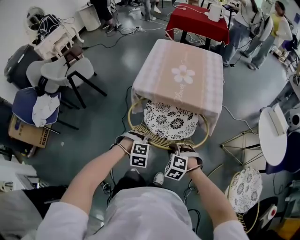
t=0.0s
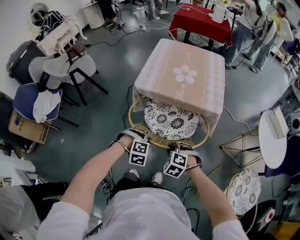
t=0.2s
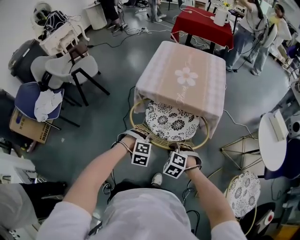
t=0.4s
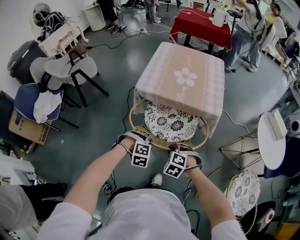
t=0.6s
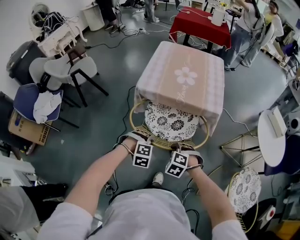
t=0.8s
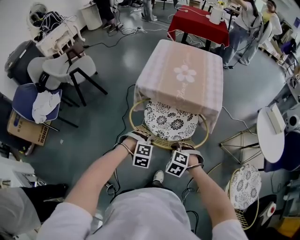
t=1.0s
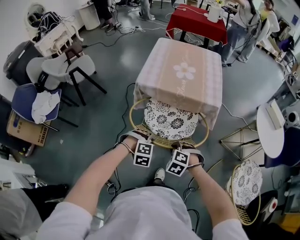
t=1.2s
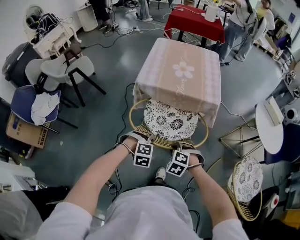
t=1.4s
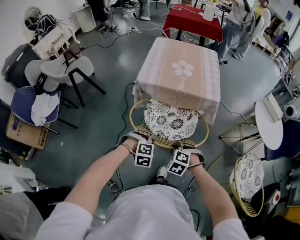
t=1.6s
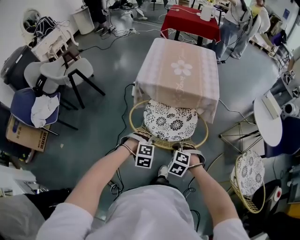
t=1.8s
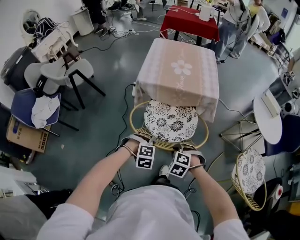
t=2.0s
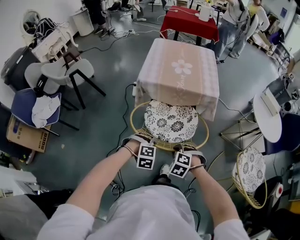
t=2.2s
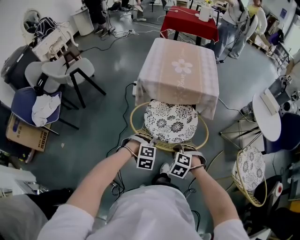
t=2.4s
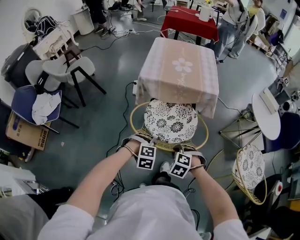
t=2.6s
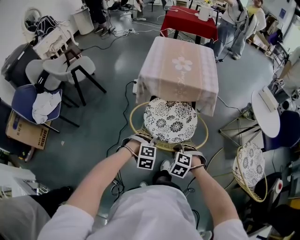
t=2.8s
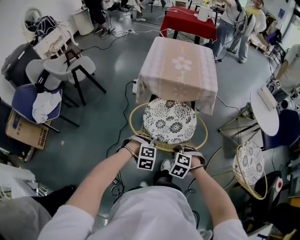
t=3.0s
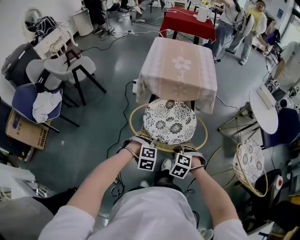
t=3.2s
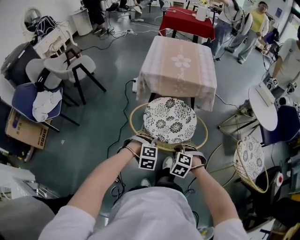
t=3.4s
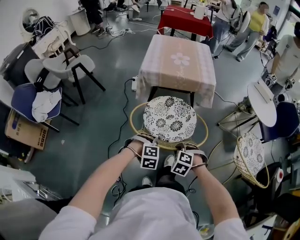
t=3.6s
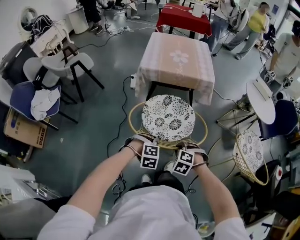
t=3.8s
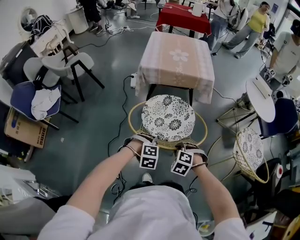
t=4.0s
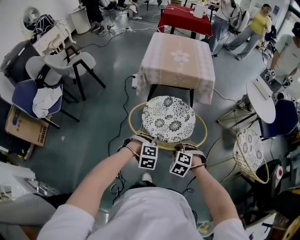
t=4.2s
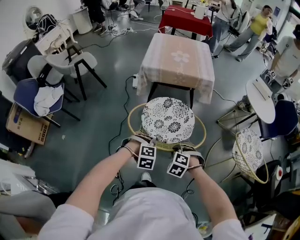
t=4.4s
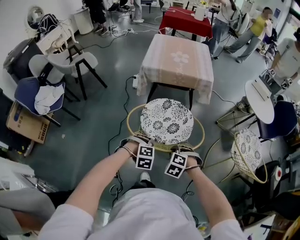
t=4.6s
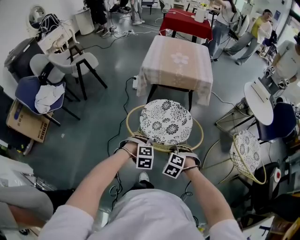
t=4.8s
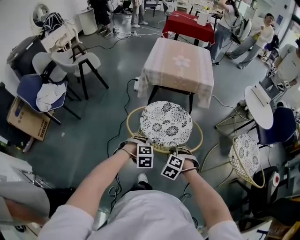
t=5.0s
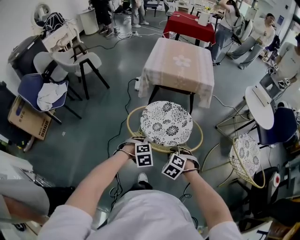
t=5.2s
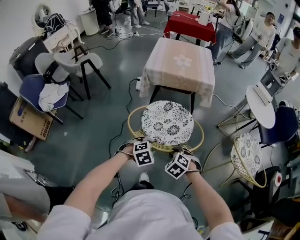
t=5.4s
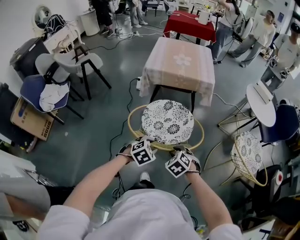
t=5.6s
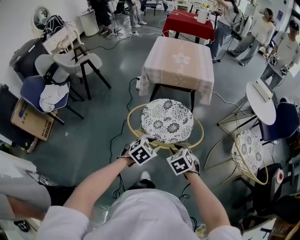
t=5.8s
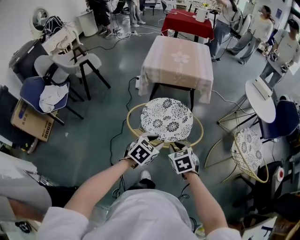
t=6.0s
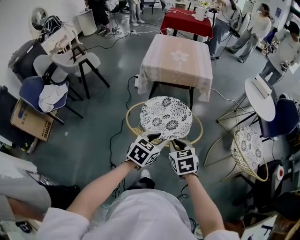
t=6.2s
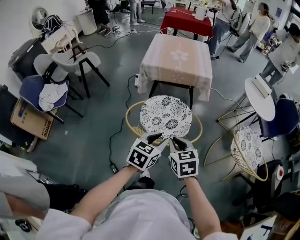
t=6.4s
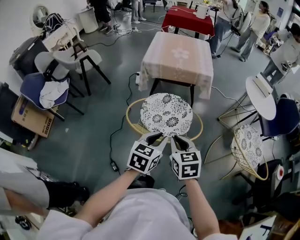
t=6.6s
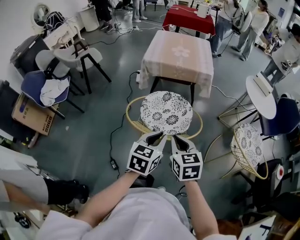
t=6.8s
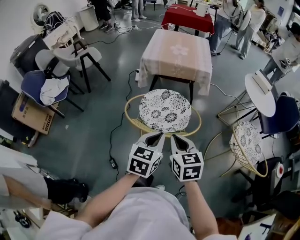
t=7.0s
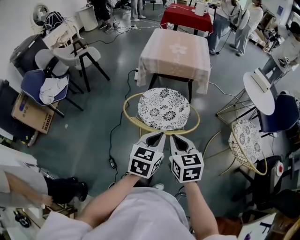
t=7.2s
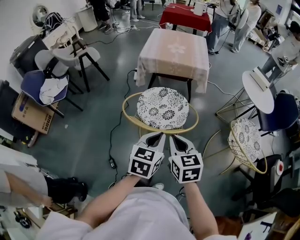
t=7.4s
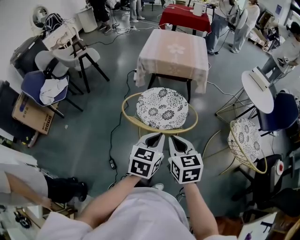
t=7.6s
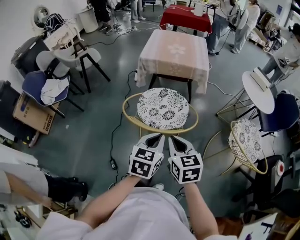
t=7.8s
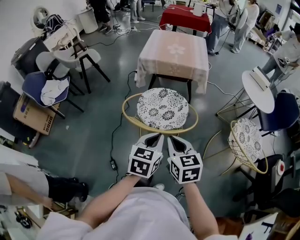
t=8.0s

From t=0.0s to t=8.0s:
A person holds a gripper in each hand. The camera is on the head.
From t=0.0s to t=1.6s: The two grippers go about 10 cm backward.
From t=1.6s to t=3.2s: The grippers both shift backward by approximately 15 cm.
From t=3.2s to t=4.8s: The grippers both shift backward by about 10 cm.
From t=4.8s to t=6.4s: The grippers both shift upward by some 15 cm. The right gripper rotates around the line of its fingers by some 60 degrees, clockwise from behind; the left gripper rotates around the line of its fingers by roughly 60 degrees, counterclockwise from behind.
From t=6.4s to t=8.0s: Both grippers travel together backward, roughly 5 cm. The left gripper closes.

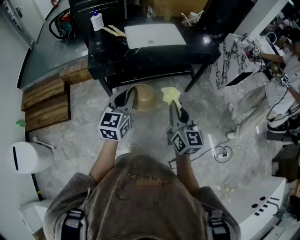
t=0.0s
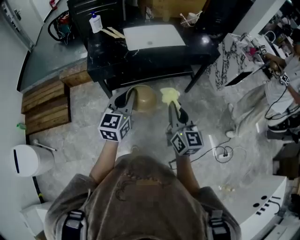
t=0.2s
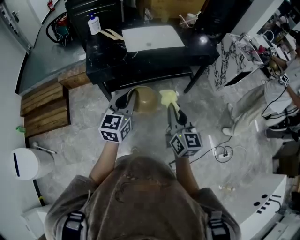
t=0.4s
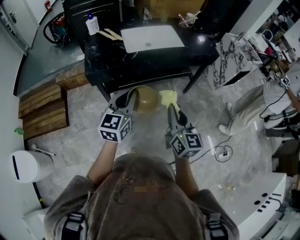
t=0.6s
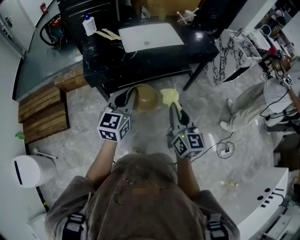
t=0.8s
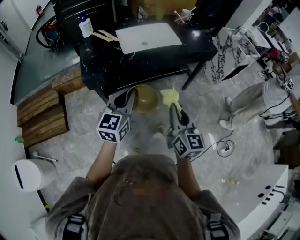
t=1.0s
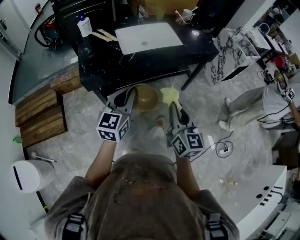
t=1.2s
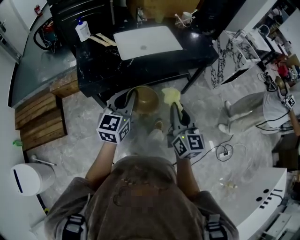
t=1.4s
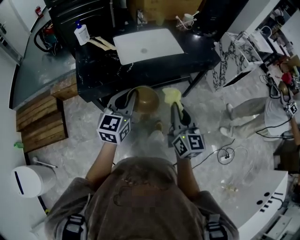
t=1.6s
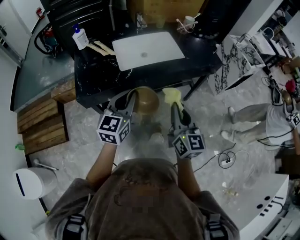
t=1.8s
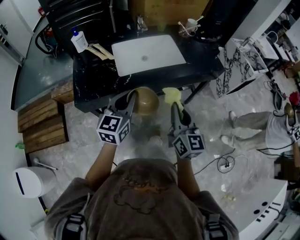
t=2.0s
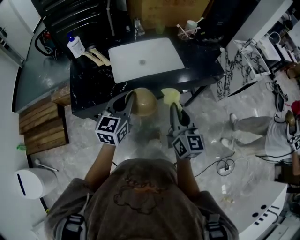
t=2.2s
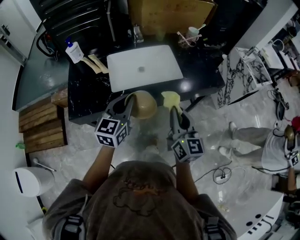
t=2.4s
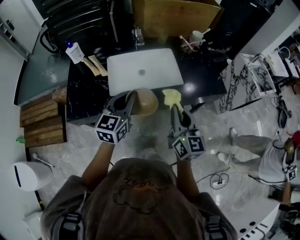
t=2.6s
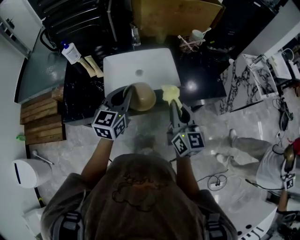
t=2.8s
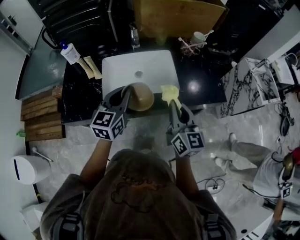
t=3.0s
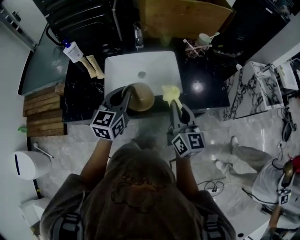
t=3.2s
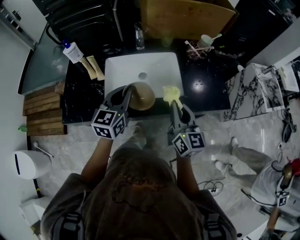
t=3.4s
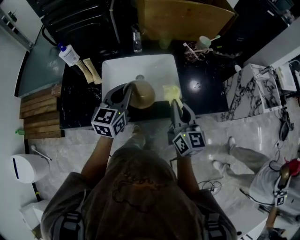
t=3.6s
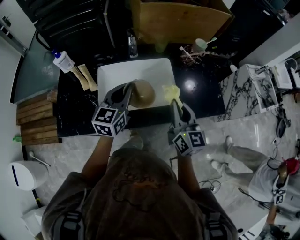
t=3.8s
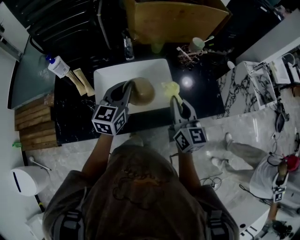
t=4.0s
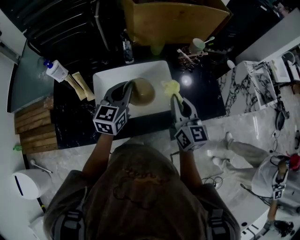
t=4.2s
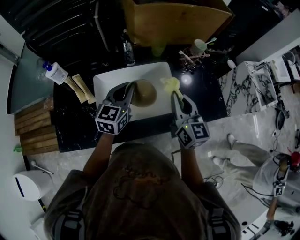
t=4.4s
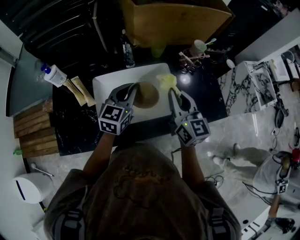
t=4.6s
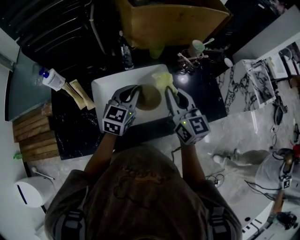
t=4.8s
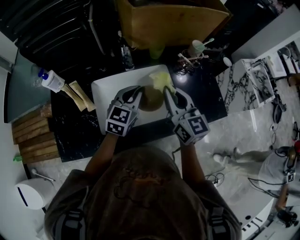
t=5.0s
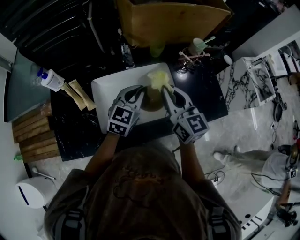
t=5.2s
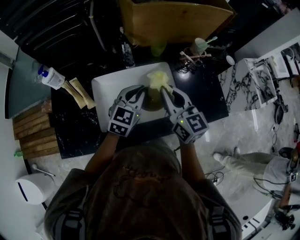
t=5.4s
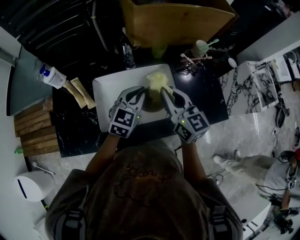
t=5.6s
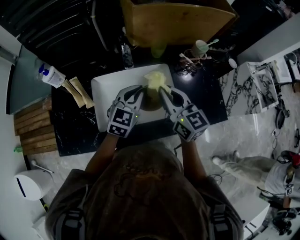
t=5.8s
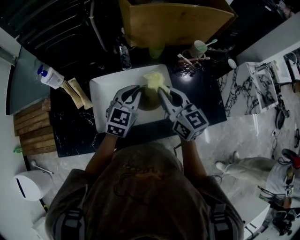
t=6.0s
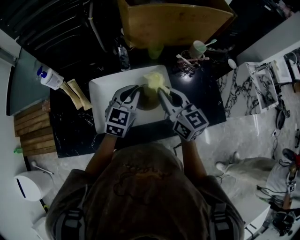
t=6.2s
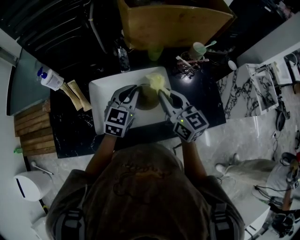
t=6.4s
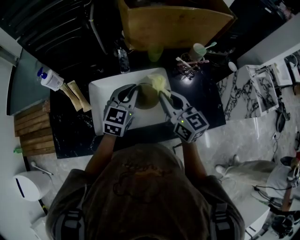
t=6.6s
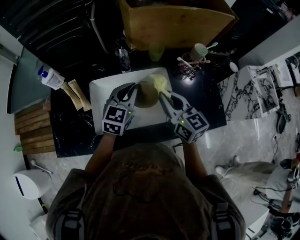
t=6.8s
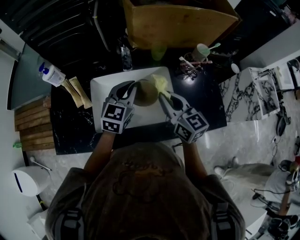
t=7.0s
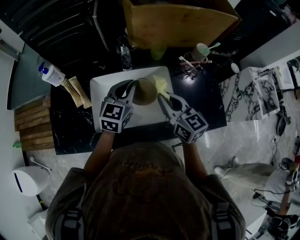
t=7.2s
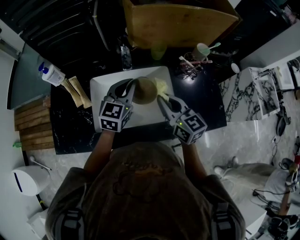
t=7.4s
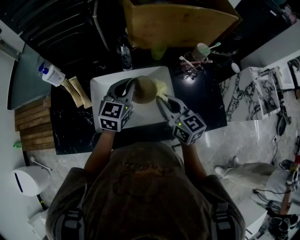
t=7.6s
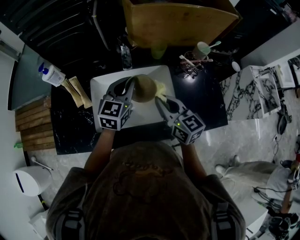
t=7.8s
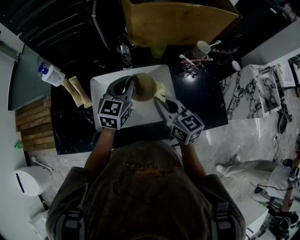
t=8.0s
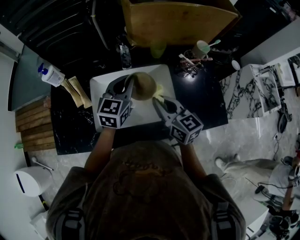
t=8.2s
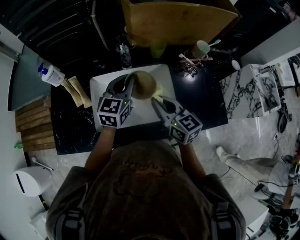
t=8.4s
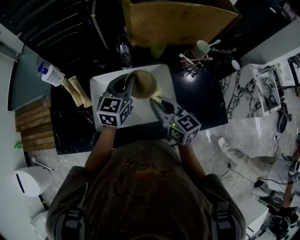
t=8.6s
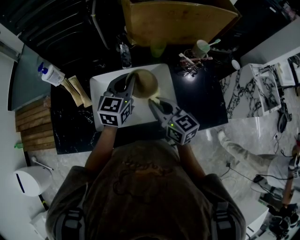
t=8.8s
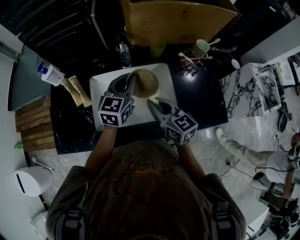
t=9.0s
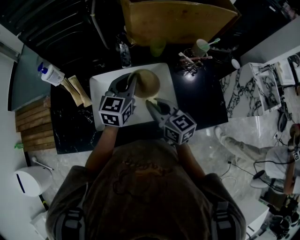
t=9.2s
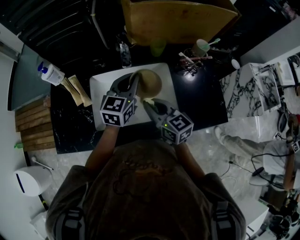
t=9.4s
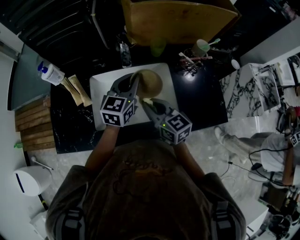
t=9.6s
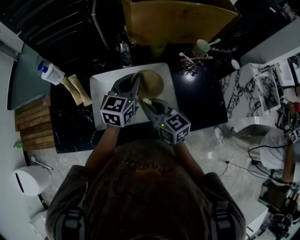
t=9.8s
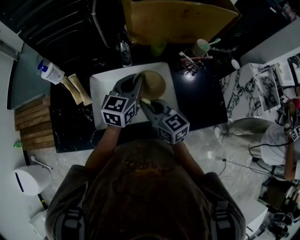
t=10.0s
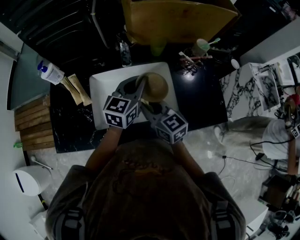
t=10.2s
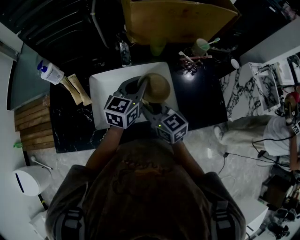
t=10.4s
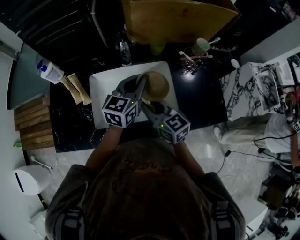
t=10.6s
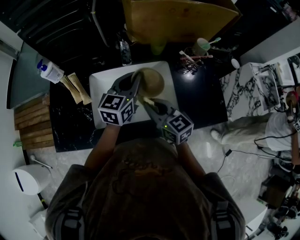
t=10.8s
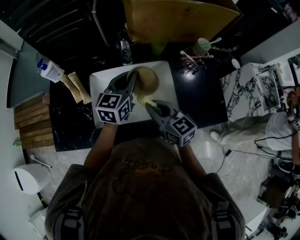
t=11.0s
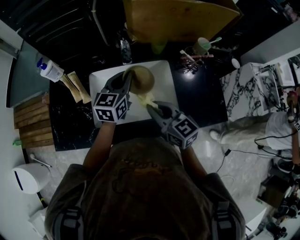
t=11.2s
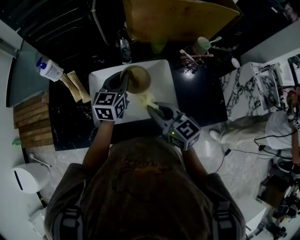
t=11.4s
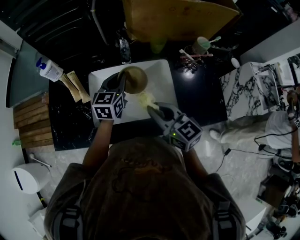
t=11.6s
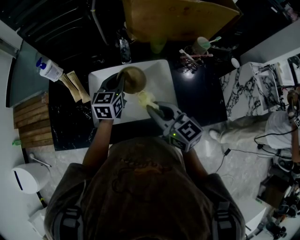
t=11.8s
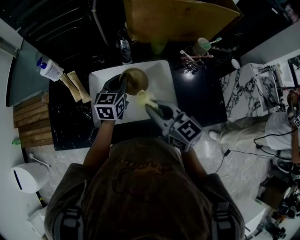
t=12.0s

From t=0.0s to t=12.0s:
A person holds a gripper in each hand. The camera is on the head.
From t=0.0s to t=1.6s: Both grippers travel together forward, roughly 15 cm.
From t=1.6s to t=3.0s: Both grippers travel together forward, approximately 30 cm.
From t=3.0s to t=4.4s: The grippers both shift forward by some 15 cm.
From t=4.4s to t=6.0s: The left gripper ends up roughly 5 cm from where it was. The right gripper ends up approximately 5 cm from where it was.
From t=6.0s to t=7.6s: The grippers move only a little.
From t=7.6s to t=9.0s: The grippers stay close to where they were, moving slightly.
From t=9.0s to t=10.4s: The grippers move only a little.
From t=10.4s to t=12.0s: The left gripper heads to the left and downward, covering roughly 10 cm; the right gripper travels upward by about 5 cm.

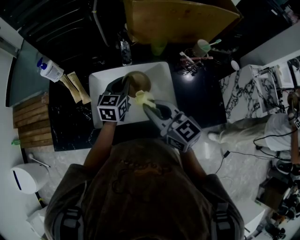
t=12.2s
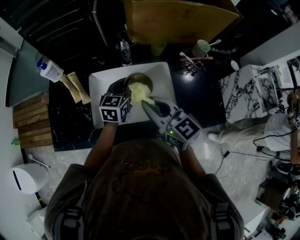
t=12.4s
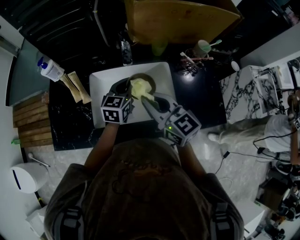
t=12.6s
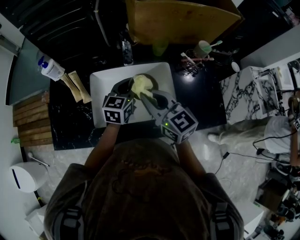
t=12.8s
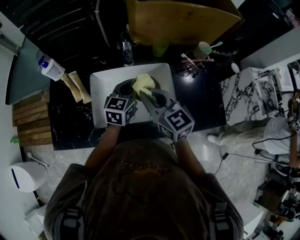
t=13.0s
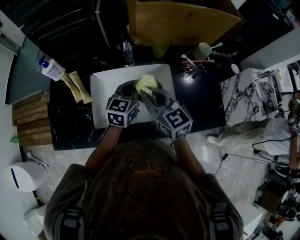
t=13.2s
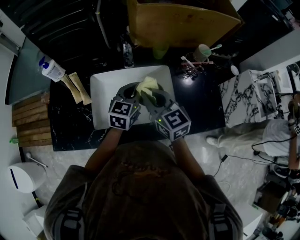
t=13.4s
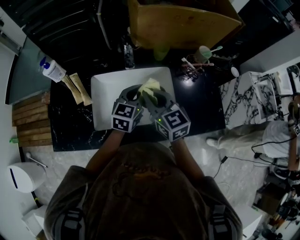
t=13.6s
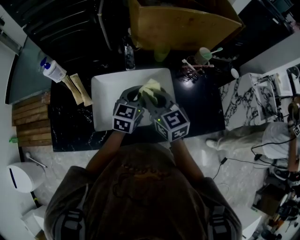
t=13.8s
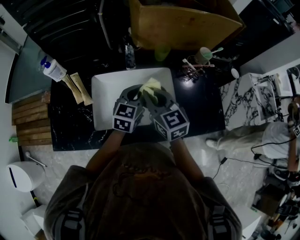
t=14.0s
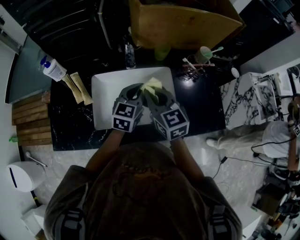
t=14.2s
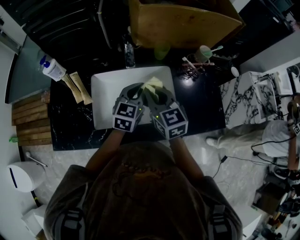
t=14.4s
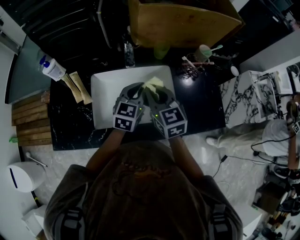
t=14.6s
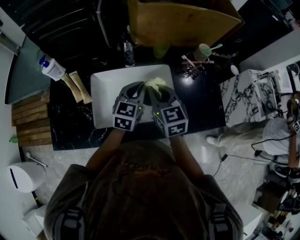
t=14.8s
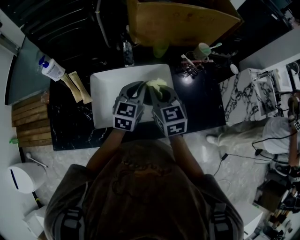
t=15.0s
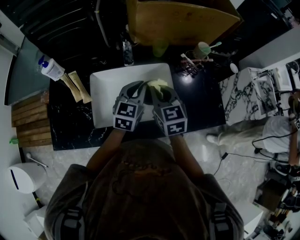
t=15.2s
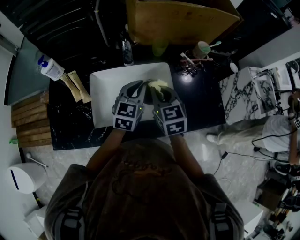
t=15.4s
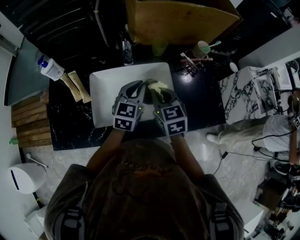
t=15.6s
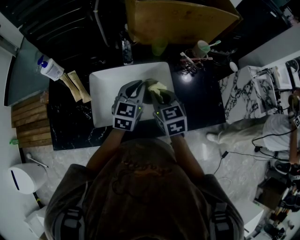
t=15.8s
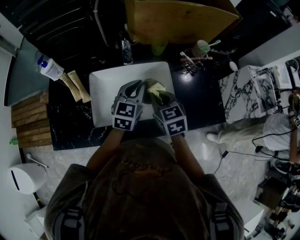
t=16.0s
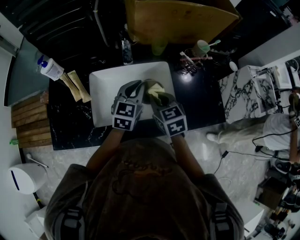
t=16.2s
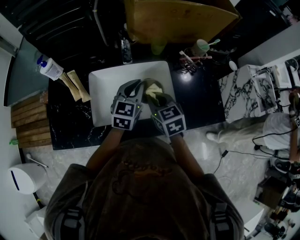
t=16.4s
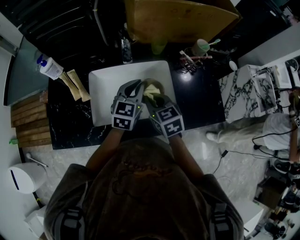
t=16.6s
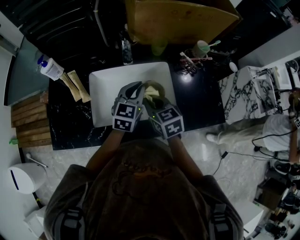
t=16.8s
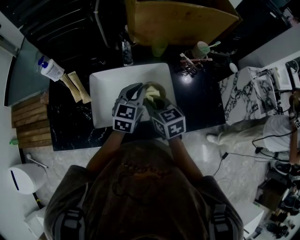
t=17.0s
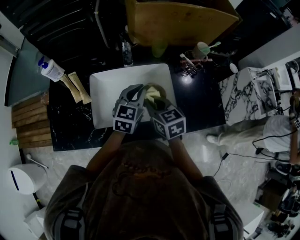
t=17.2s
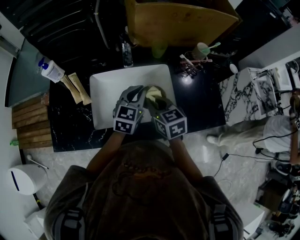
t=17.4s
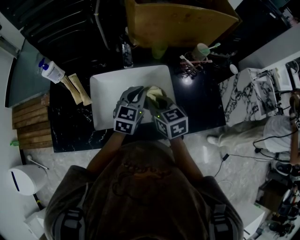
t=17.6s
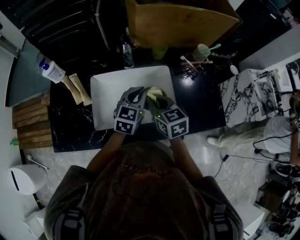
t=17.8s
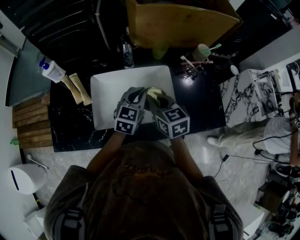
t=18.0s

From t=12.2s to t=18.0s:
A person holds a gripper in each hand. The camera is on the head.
From t=12.2s to t=13.6s: The left gripper travels to the right by some 5 cm. The right gripper shifts approximately 5 cm forward.
From t=13.6s to t=15.0s: There are only small adjustments of the grippers.
From t=15.0s to t=16.6s: The right gripper shifts roughly 5 cm downward.
From t=16.6s to t=18.0s: The grippers move only a little.
